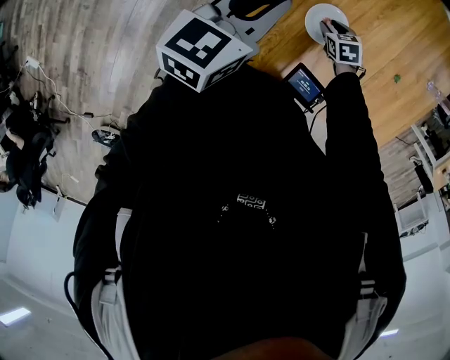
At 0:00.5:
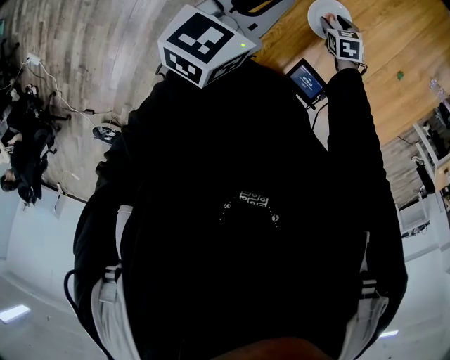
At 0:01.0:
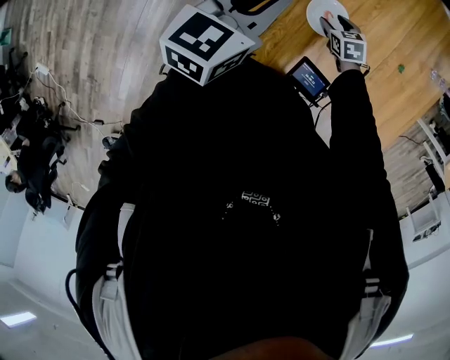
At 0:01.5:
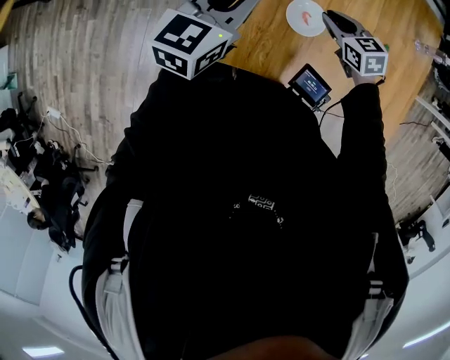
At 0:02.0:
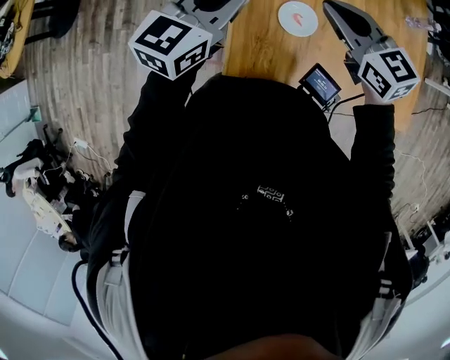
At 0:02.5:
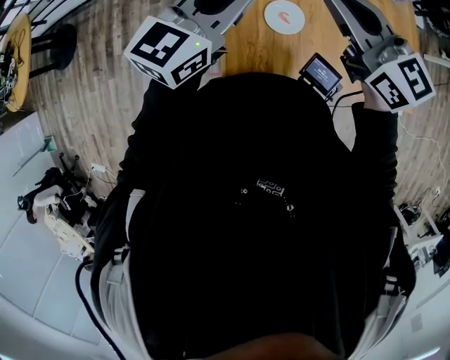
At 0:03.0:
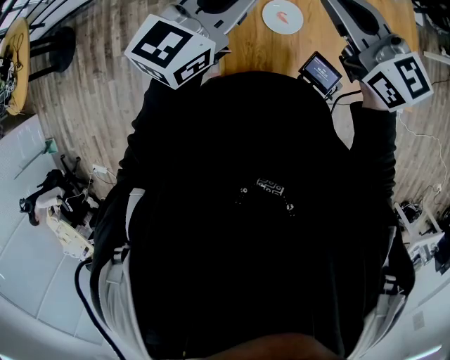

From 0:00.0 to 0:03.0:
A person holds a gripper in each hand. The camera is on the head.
From 0:00.0 to 0:01.5: The right gripper is displaced upward by about 20 cm, and swivels roughly 20 degrees. Meanwhile the left gripper travels upward by about 5 cm.
From 0:01.5 to 0:03.0: The right gripper shifts some 25 cm upward, and tilts its fingers approximately 40 degrees upward. The left gripper goes approximately 10 cm to the right and upward, and rotates roughly 30 degrees.

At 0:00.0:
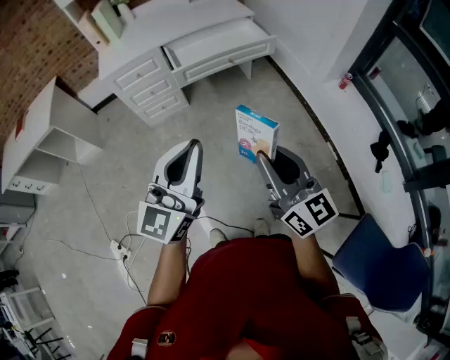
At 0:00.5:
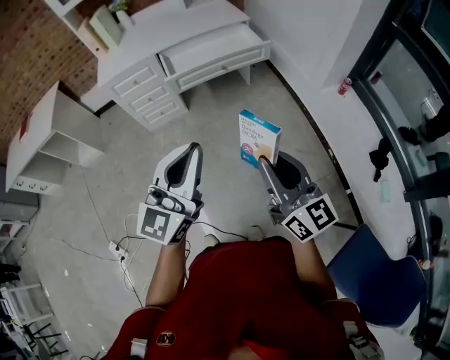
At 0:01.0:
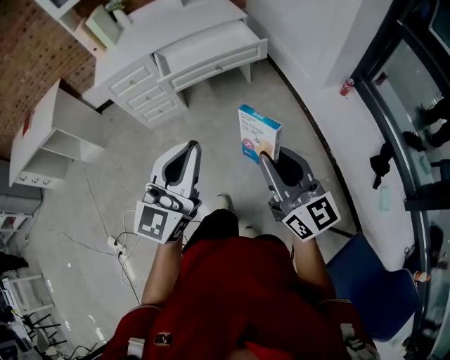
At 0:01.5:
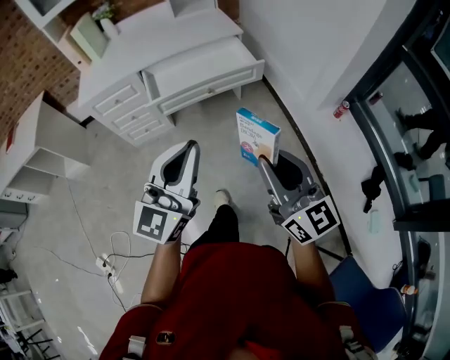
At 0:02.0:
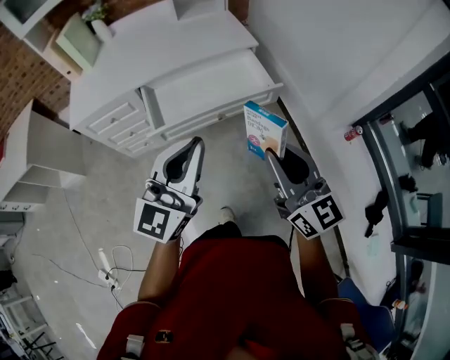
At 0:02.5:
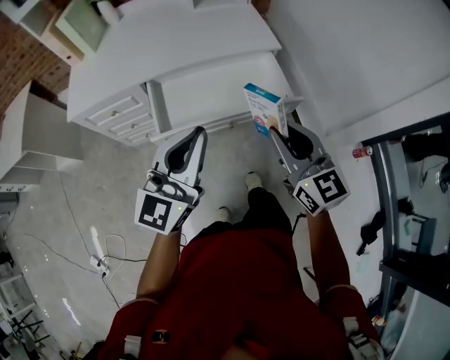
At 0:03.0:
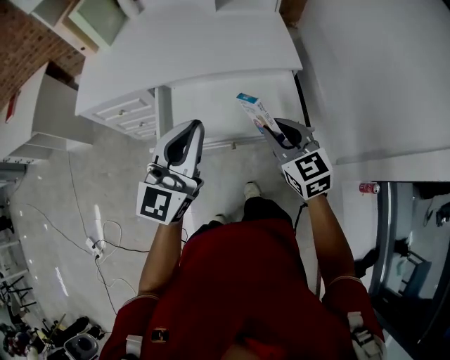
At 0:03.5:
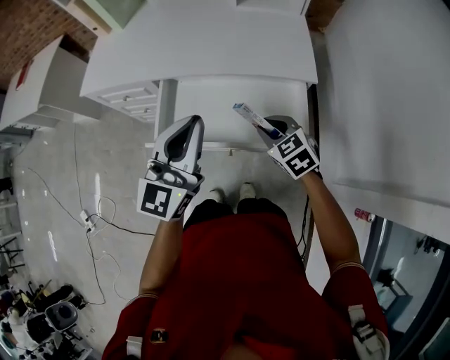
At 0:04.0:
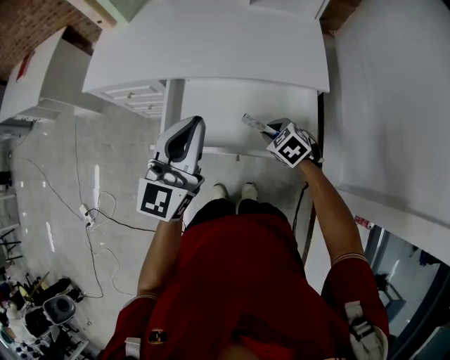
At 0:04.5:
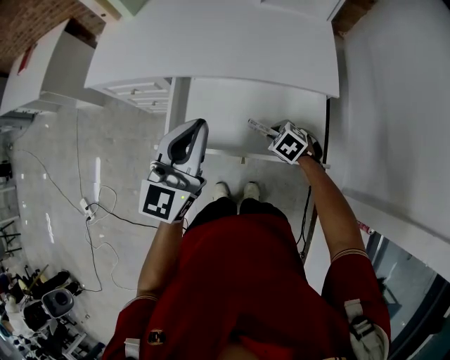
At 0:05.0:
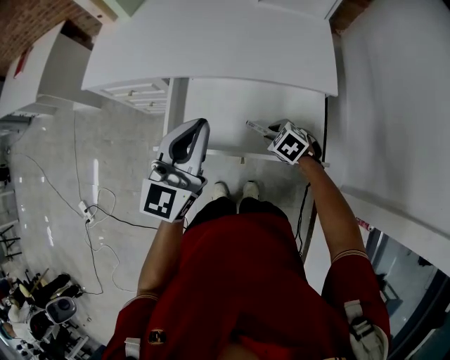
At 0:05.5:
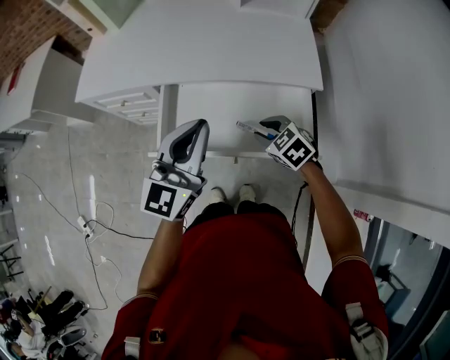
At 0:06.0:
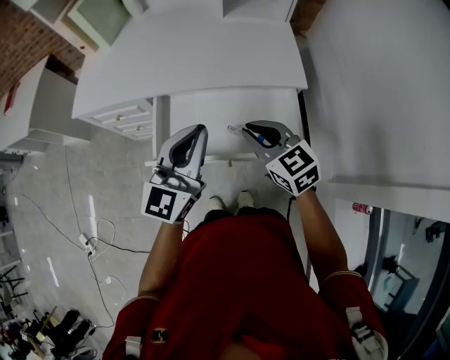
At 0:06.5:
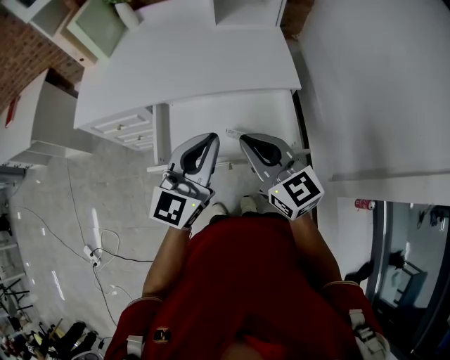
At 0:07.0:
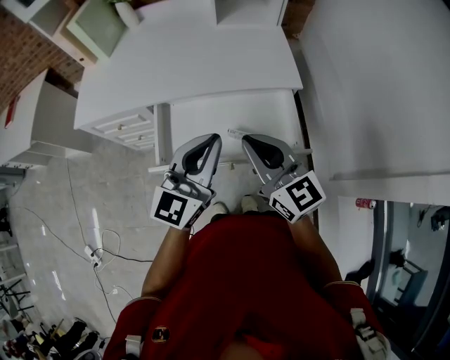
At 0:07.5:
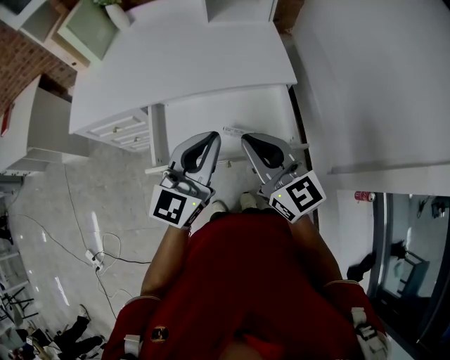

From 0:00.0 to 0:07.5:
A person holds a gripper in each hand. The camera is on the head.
From 0:00.0 to 0:02.0: The pair of grippers is taken forward, about 40 cm.
From 0:02.0 to 0:04.0: The left gripper changes place by some 30 cm, and turns by about 30 degrees; the right gripper changes place by roughly 50 cm, and points its fingers approximately 60 degrees further downward.
From 0:04.0 to 0:05.5: The grippers make only small movements.
From 0:05.5 to 0:07.5: The left gripper ends up some 5 cm from where it was. Meanwhile the right gripper goes roughly 20 cm upward, tilts its fingers approximately 50 degrees upward, and closes.

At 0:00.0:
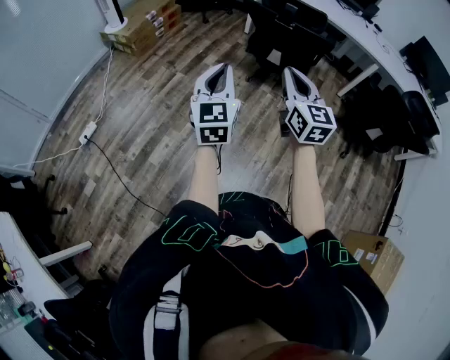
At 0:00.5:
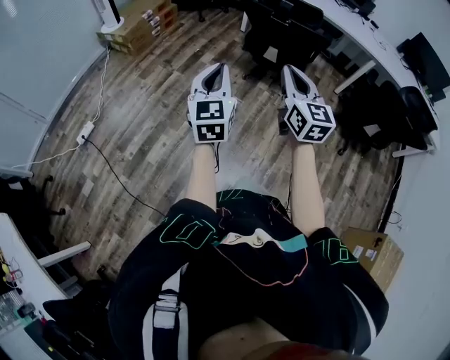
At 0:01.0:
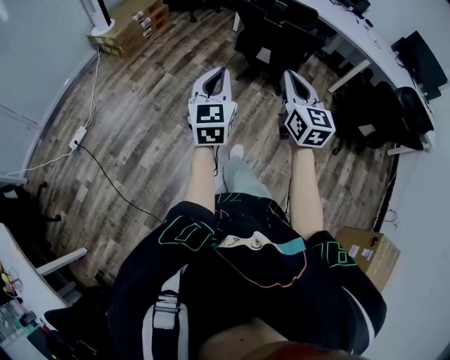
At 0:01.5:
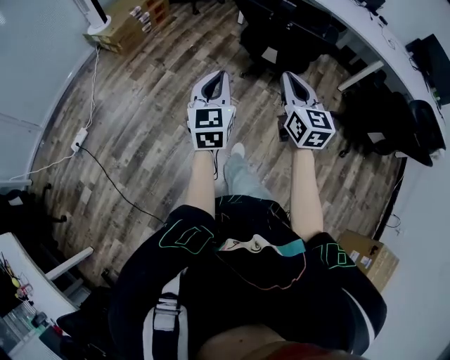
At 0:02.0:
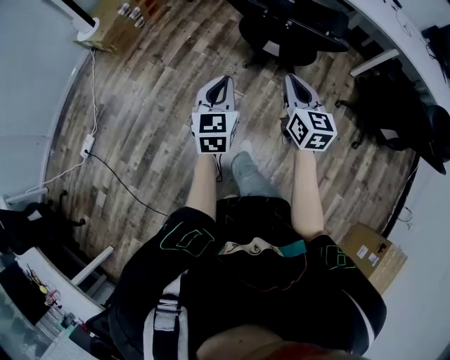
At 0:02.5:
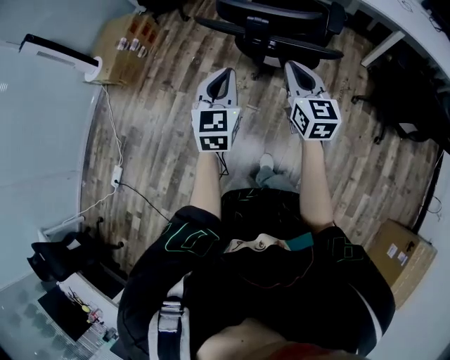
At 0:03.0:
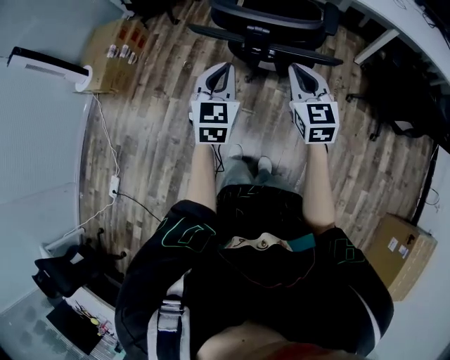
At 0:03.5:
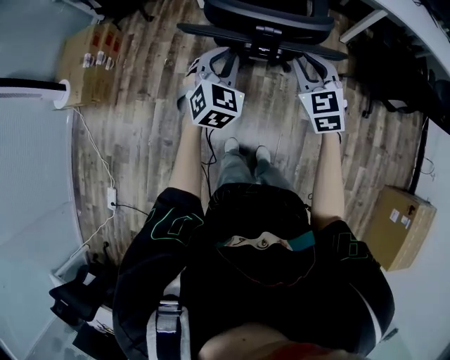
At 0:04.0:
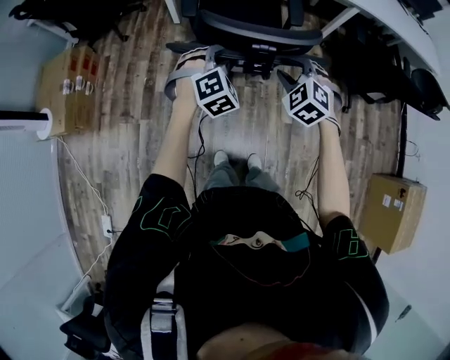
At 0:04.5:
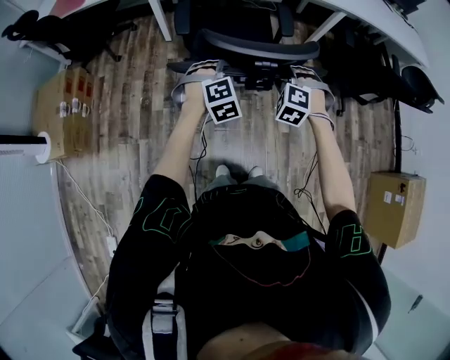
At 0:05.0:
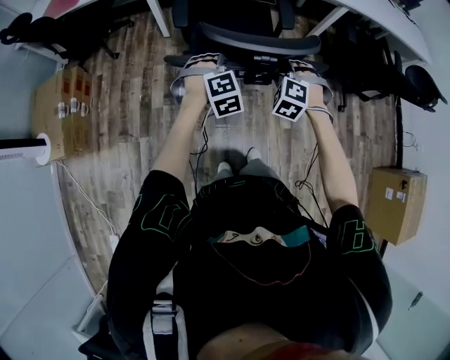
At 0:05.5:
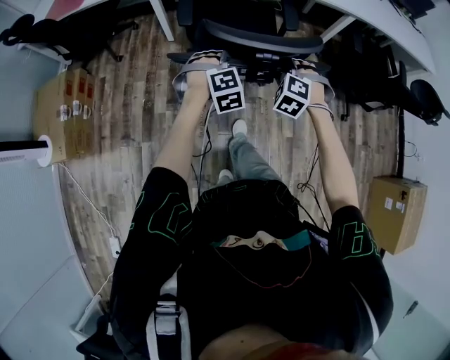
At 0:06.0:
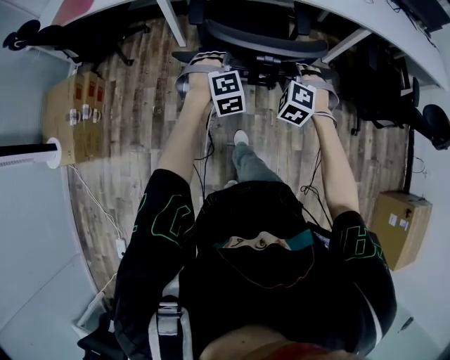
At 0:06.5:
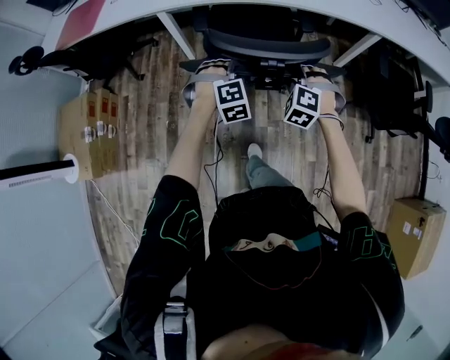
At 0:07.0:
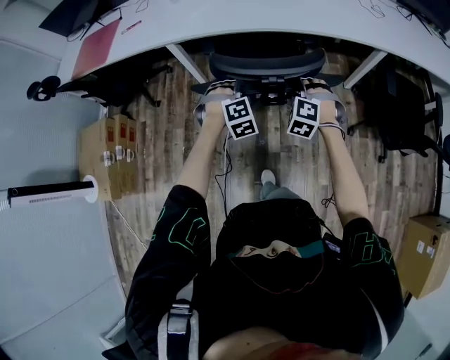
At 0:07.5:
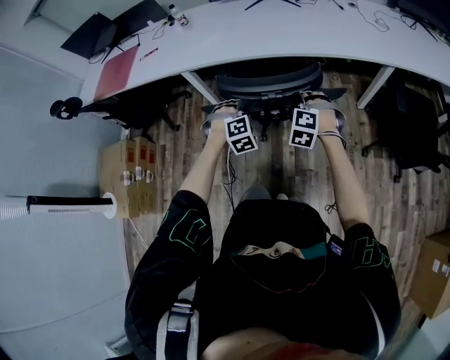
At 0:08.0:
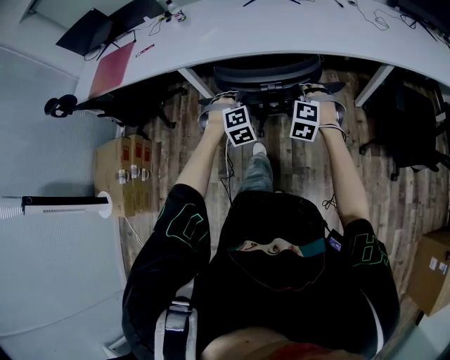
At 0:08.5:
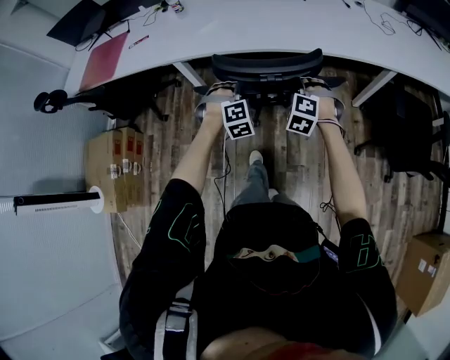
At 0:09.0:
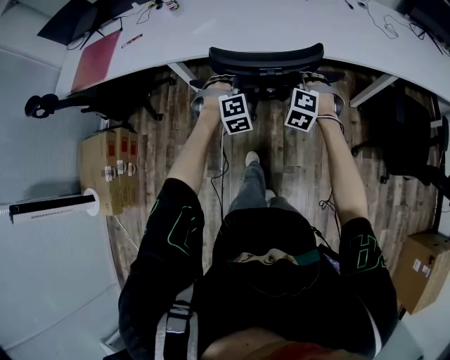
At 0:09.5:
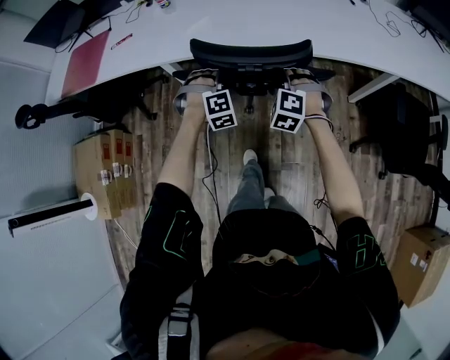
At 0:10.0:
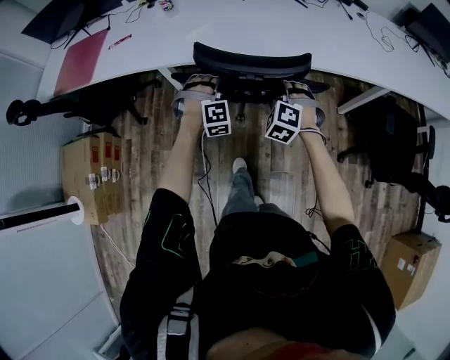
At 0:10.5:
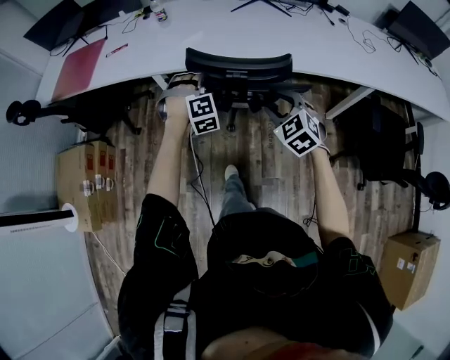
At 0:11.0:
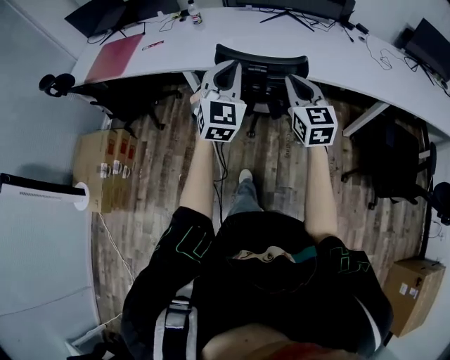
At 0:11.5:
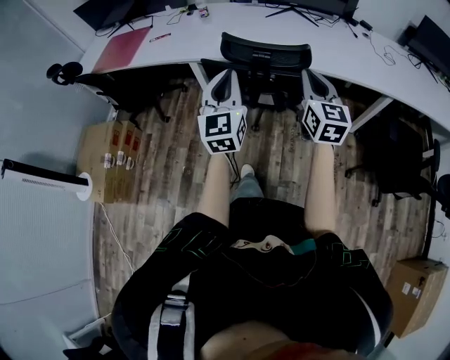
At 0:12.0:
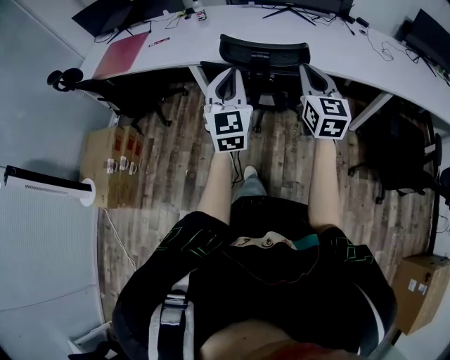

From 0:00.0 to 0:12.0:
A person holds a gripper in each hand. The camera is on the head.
From 0:00.0 to 0:02.0: The two grippers go roughly 30 cm forward, downward and to the right.
From 0:02.0 to 0:04.0: The left gripper moves some 35 cm, rotates around the line of its fingers by about 70 degrees, clockwise from behind, and opens up. Meanwhile the right gripper changes place by about 20 cm, angles its fingers downward, by approximately 30 degrees, and opens.
From 0:04.0 to 0:06.0: The grippers both shift forward by roughly 20 cm.
From 0:06.0 to 0:08.0: The two grippers go about 20 cm forward.
From 0:08.0 to 0:10.0: Both grippers move forward and to the left, some 20 cm.
From 0:10.0 to 0:12.0: The two grippers go about 30 cm upward and backward. The left gripper rolls counterclockwise, seen from behind, by about 70 degrees, and closes. The right gripper points its fingers some 40 degrees further upward, and closes.

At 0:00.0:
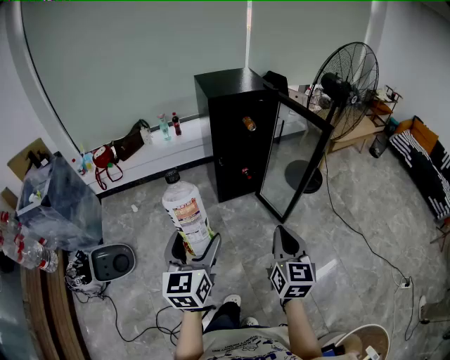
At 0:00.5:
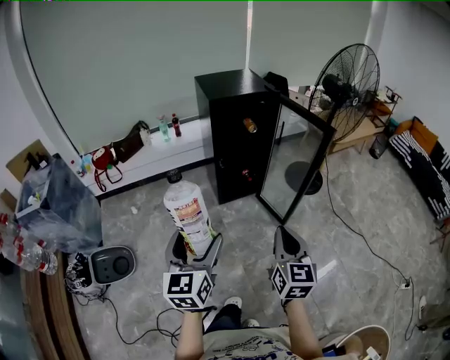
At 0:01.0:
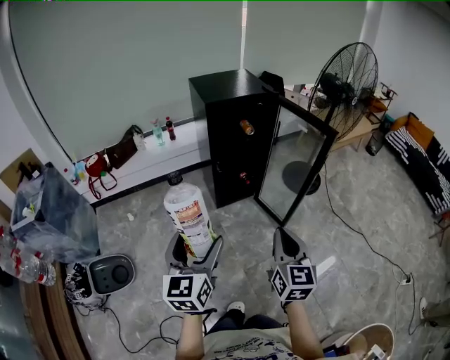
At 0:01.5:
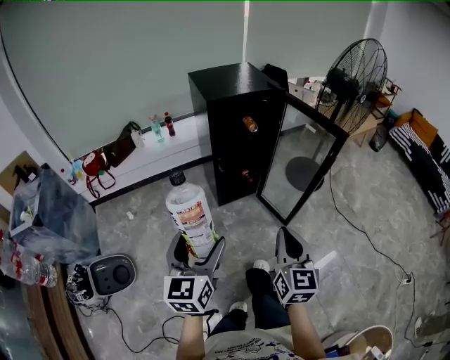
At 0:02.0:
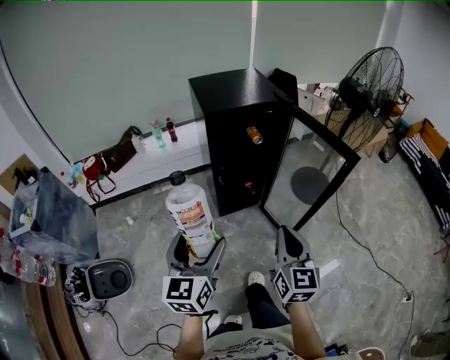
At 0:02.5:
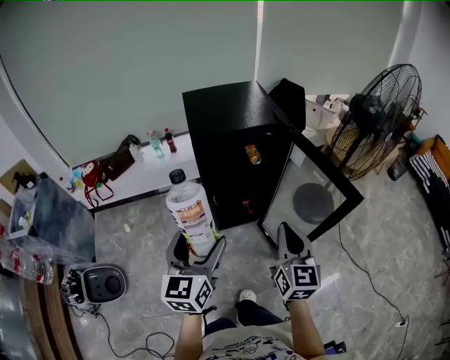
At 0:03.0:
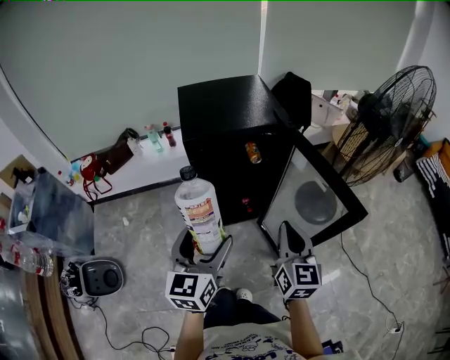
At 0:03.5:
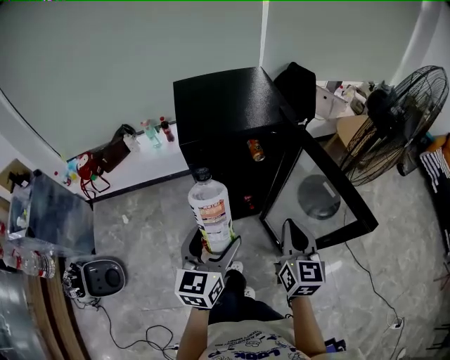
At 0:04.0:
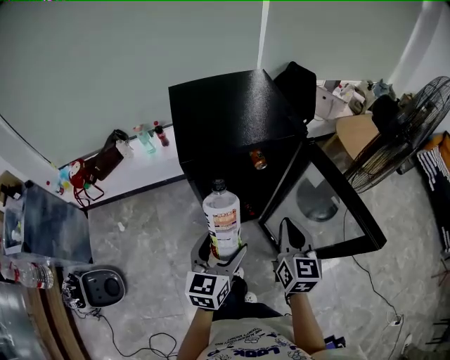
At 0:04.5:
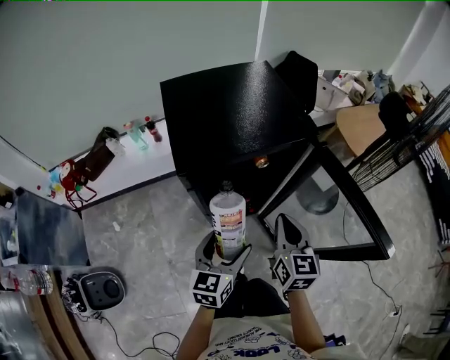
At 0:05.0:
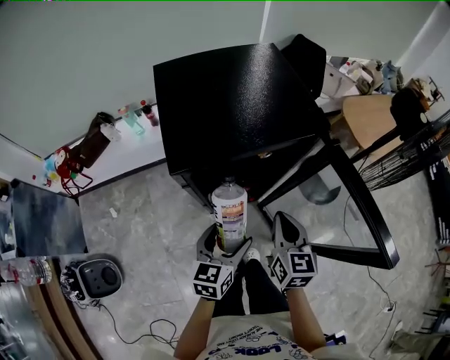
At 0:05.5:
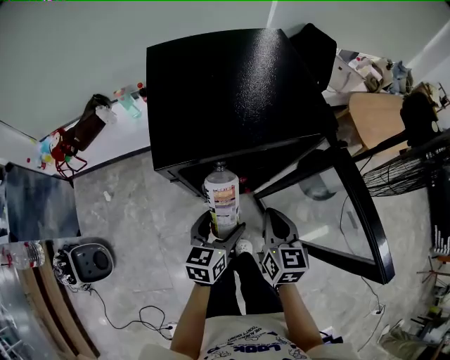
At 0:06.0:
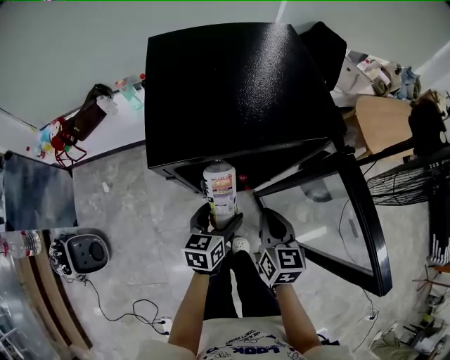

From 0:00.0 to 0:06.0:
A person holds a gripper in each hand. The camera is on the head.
From 0:00.0 to 0:02.0: Both grippers travel together forward, about 25 cm.
From 0:02.0 to 0:04.0: The grippers both shift forward by approximately 30 cm.
From 0:04.0 to 0:06.0: Both grippers travel together downward and forward, roughly 20 cm. The left gripper swivels about 20 degrees.
